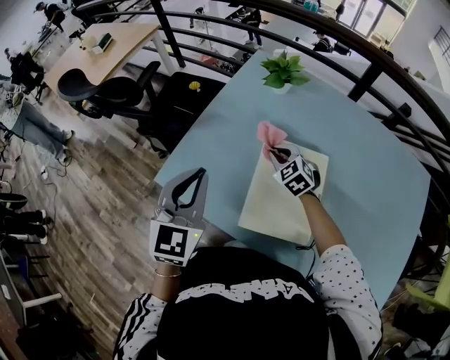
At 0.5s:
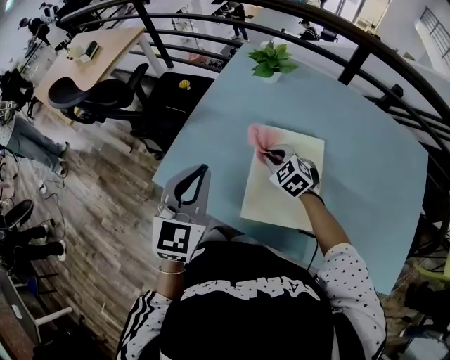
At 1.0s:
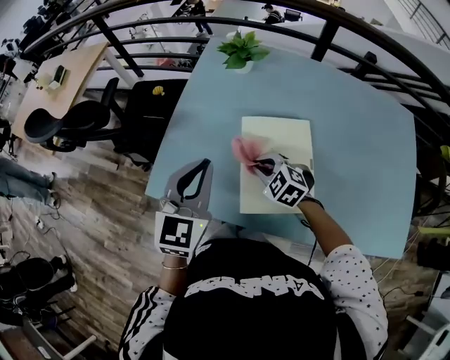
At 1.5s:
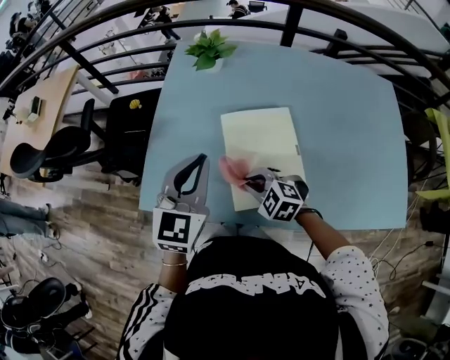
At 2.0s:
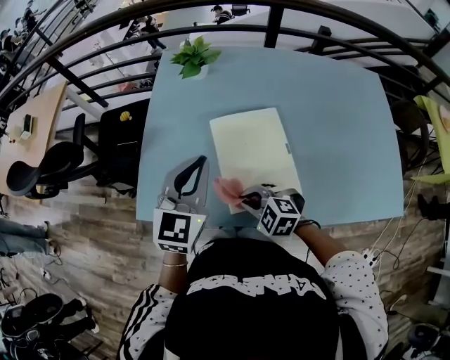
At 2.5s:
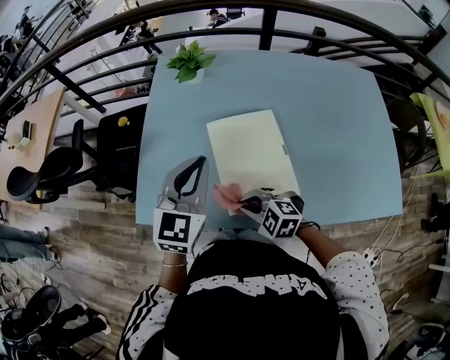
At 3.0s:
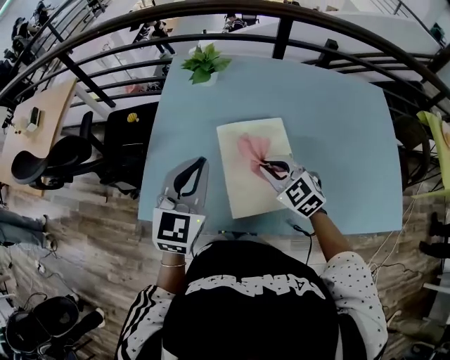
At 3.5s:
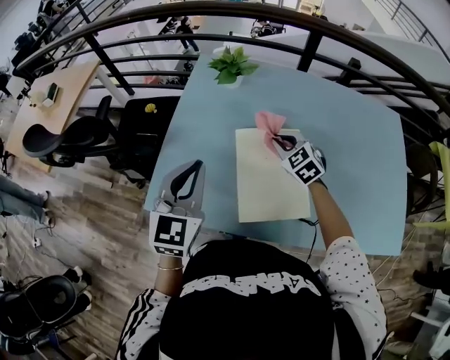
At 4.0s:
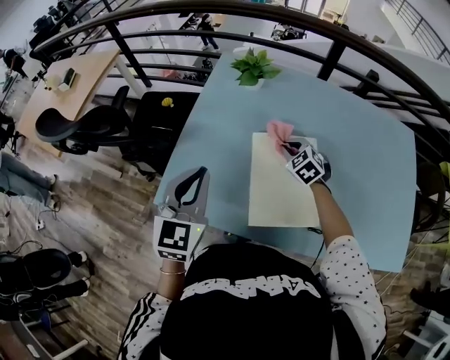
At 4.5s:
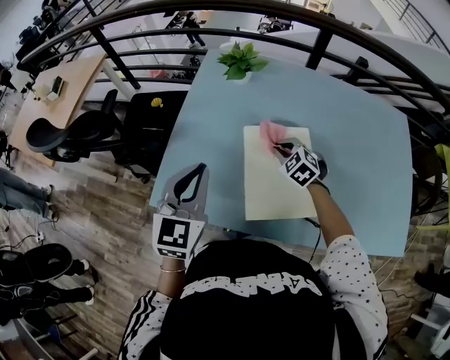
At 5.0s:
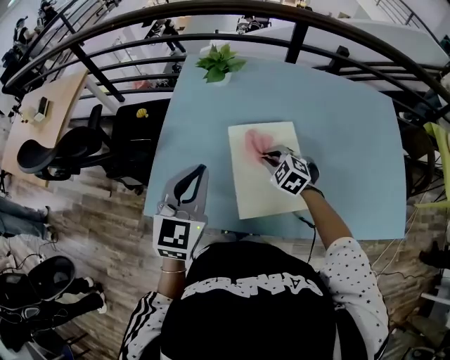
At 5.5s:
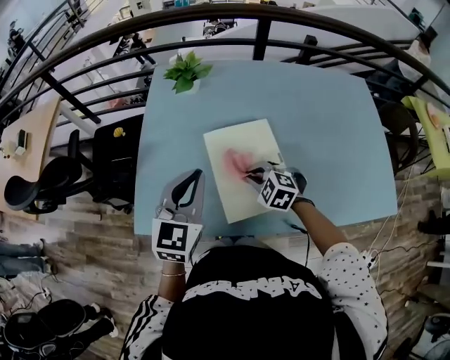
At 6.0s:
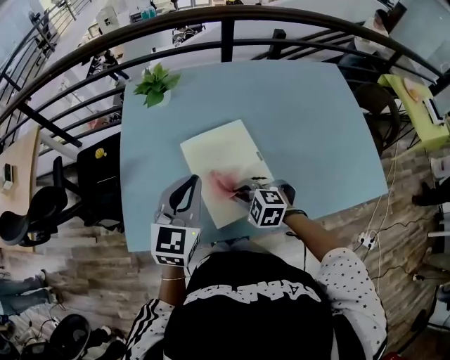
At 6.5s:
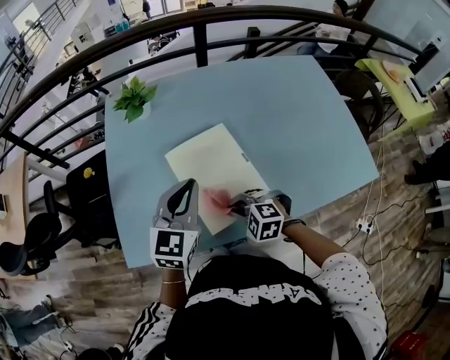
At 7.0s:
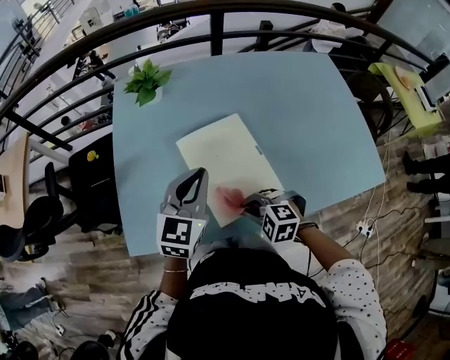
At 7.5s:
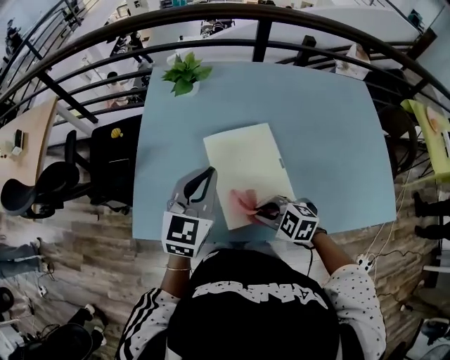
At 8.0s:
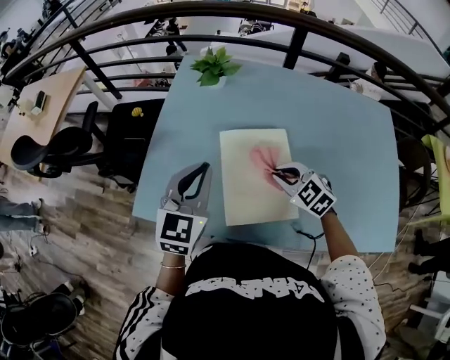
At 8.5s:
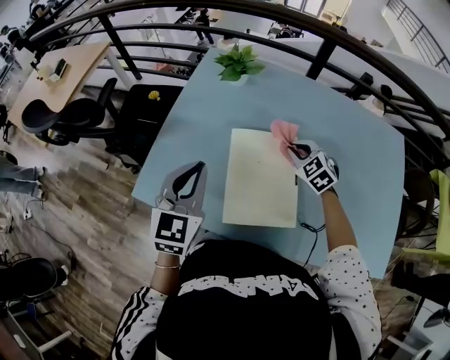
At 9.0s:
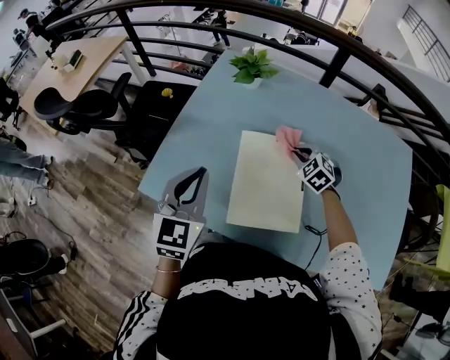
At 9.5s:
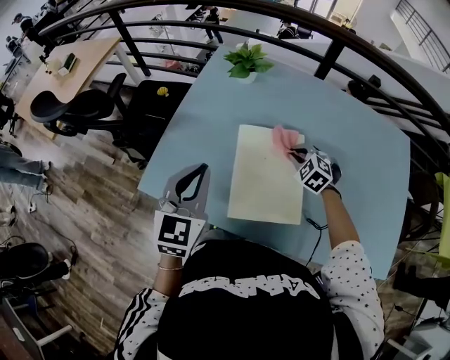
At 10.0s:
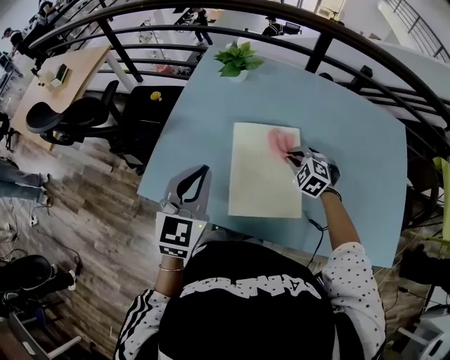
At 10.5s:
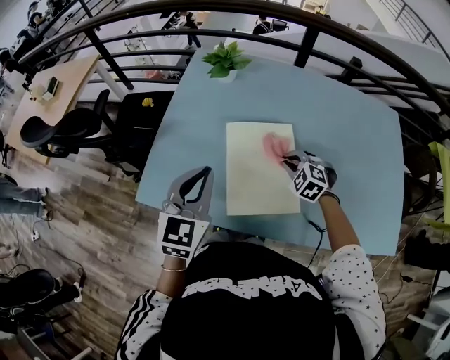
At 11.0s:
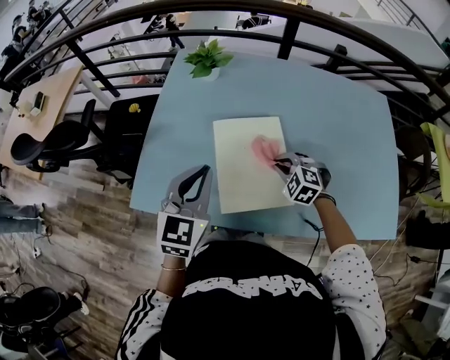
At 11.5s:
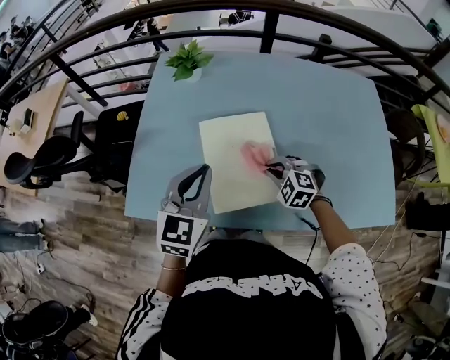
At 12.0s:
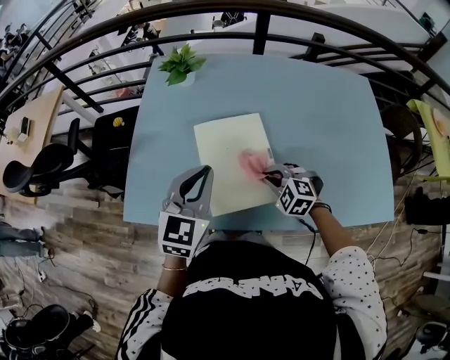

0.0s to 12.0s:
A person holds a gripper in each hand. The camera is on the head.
0.0s to 2.0s: The right gripper heads backward, covering approximately 20 cm, while the left gripper goes roughly 10 cm to the right, and swivels roughly 30 degrees.
2.0s to 4.0s: The right gripper heads forward and to the right, covering about 25 cm, and swivels about 20 degrees, while the left gripper moves to the left, about 10 cm.
4.0s to 6.0s: The left gripper moves to the right, about 15 cm, and turns by about 30 degrees; the right gripper is displaced backward by some 20 cm.
6.0s to 8.0s: The right gripper heads forward, to the right and upward, covering about 10 cm. The left gripper ends up some 5 cm from where it was.
8.0s to 10.0s: The right gripper shifts approximately 10 cm downward and forward, and swivels approximately 20 degrees.
10.0s to 12.0s: The right gripper shifts roughly 10 cm backward. The left gripper travels to the right by approximately 10 cm.

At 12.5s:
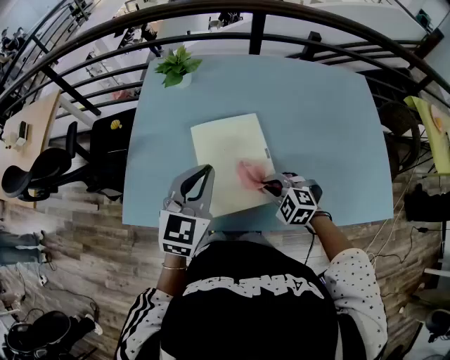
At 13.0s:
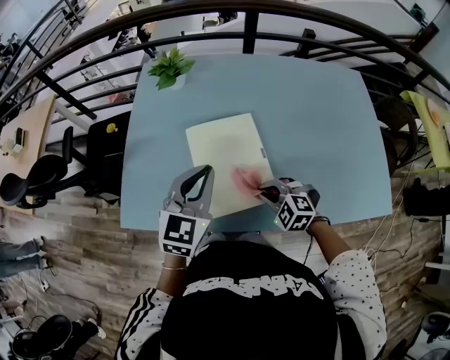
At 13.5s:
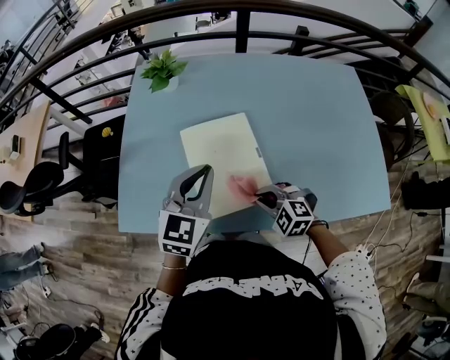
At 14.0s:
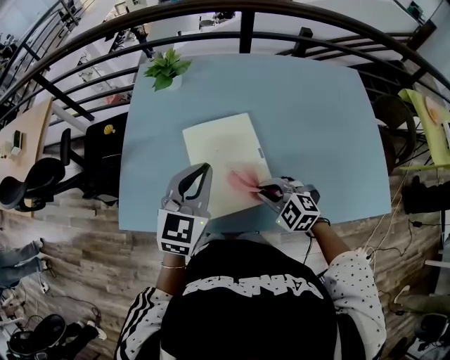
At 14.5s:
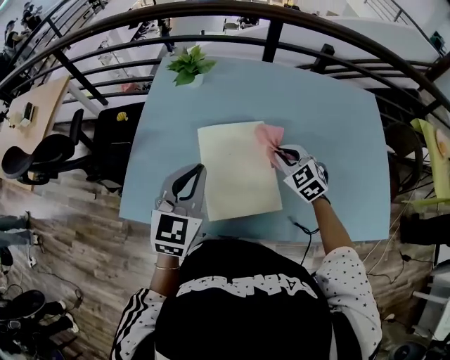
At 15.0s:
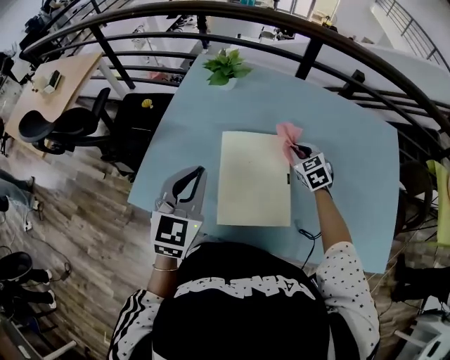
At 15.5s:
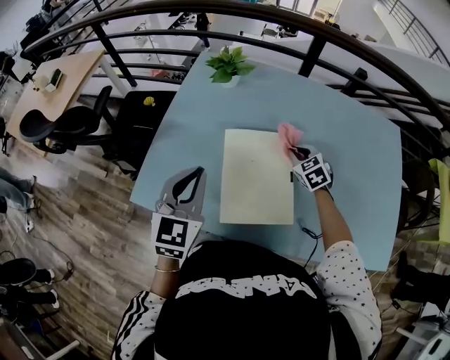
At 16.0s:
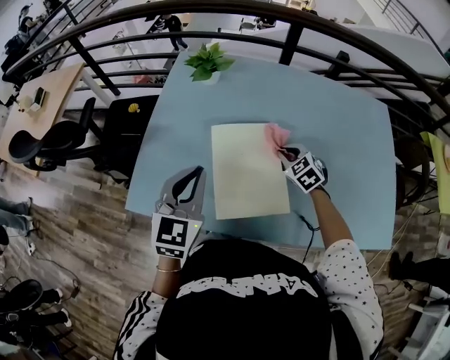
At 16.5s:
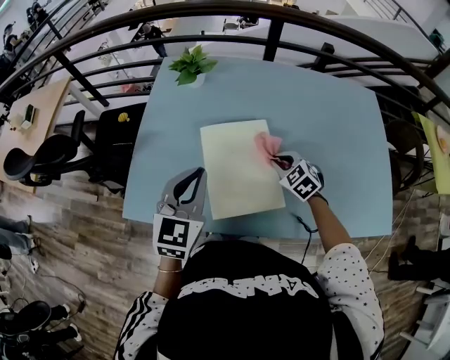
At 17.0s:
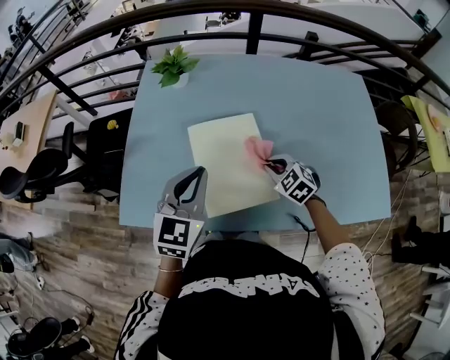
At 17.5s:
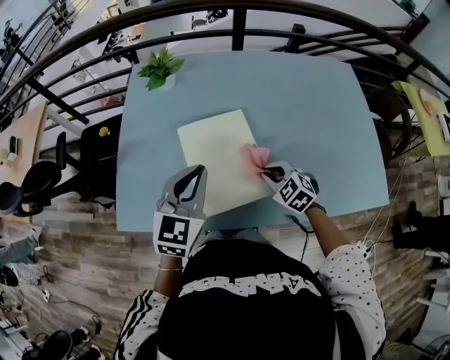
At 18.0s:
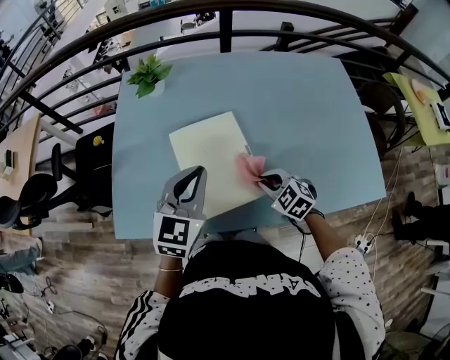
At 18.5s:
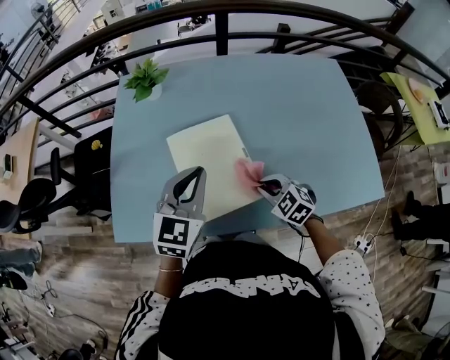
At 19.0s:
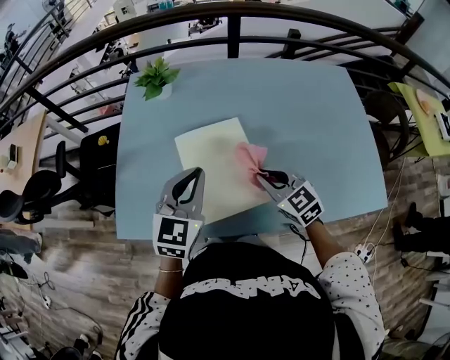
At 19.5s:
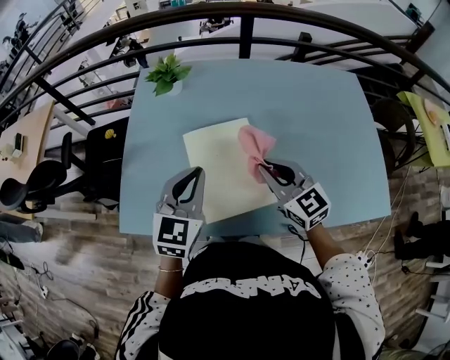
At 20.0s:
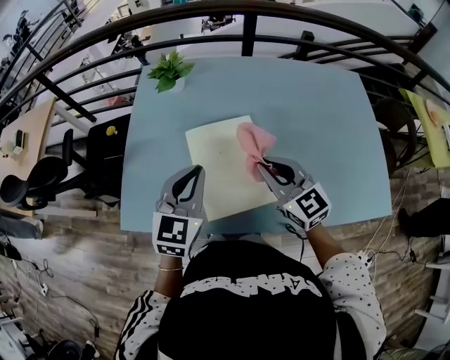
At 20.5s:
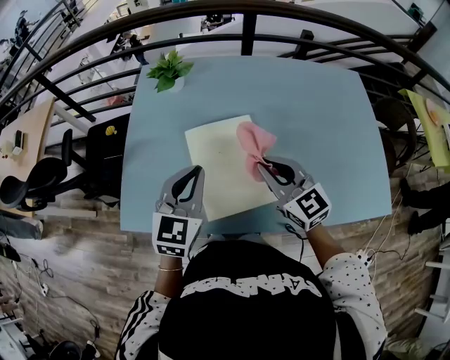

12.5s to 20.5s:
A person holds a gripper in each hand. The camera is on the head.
12.5s to 14.5s: The right gripper shifts some 15 cm forward, to the right and upward, and turns by some 20 degrees.
14.5s to 16.5s: The right gripper heads downward, covering approximately 5 cm, and moves approximately 10 cm forward and comes back.
16.5s to 18.5s: The right gripper moves backward, approximately 10 cm. The left gripper is displaced to the right by approximately 10 cm.
18.5s to 20.5s: The right gripper goes about 15 cm upward, and angles its fingers upward, by approximately 40 degrees.

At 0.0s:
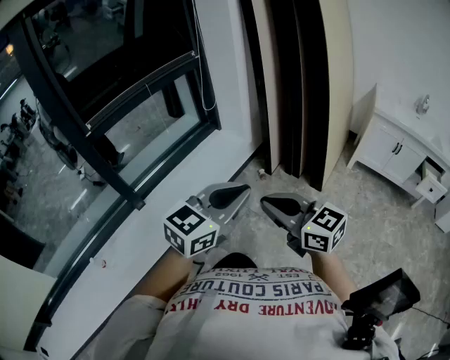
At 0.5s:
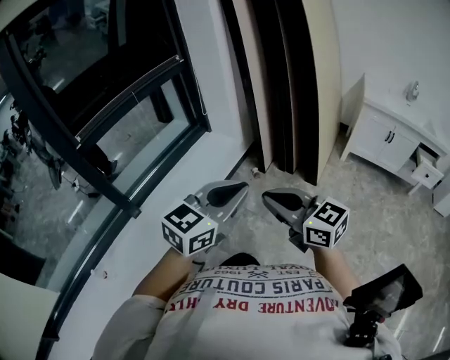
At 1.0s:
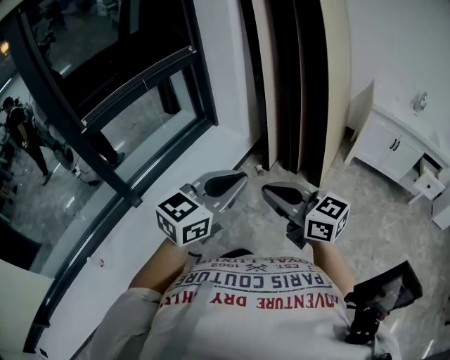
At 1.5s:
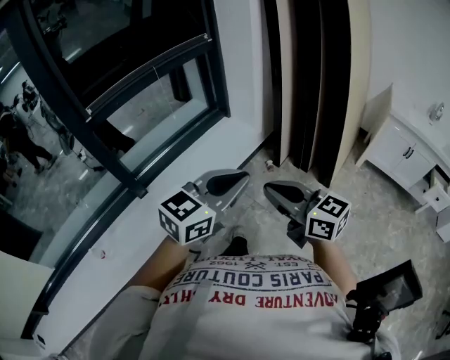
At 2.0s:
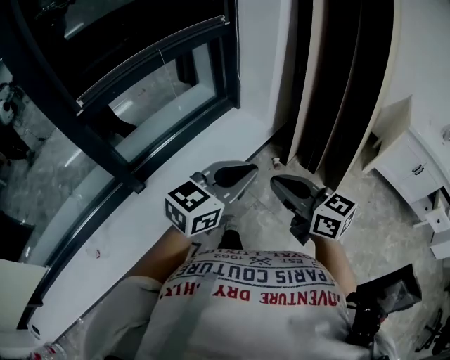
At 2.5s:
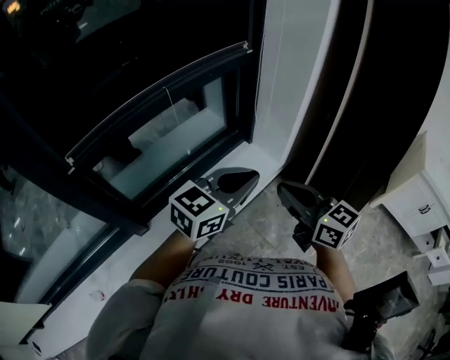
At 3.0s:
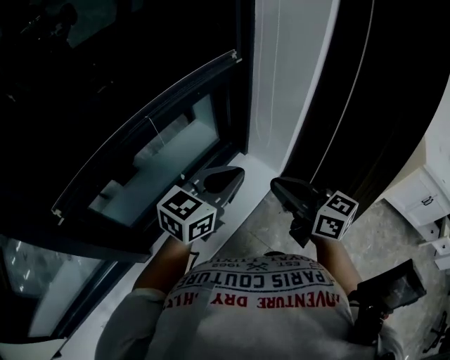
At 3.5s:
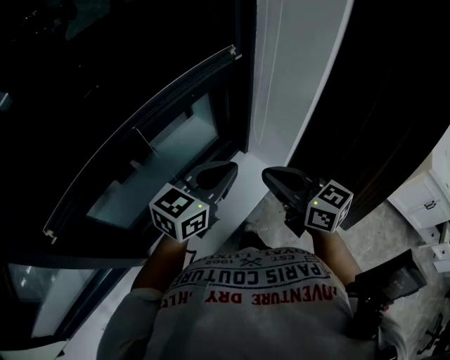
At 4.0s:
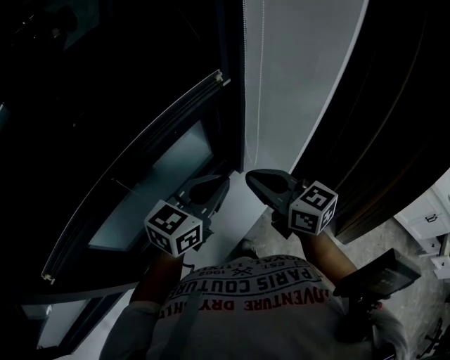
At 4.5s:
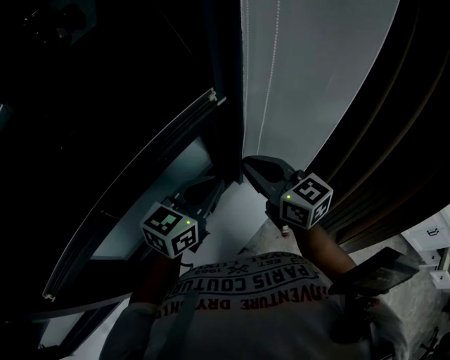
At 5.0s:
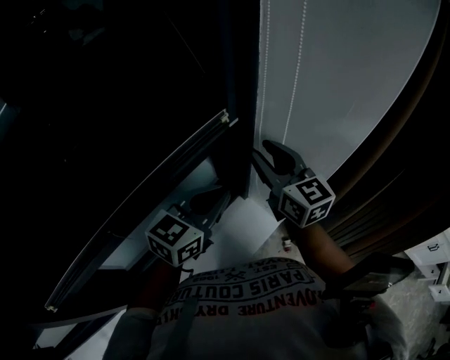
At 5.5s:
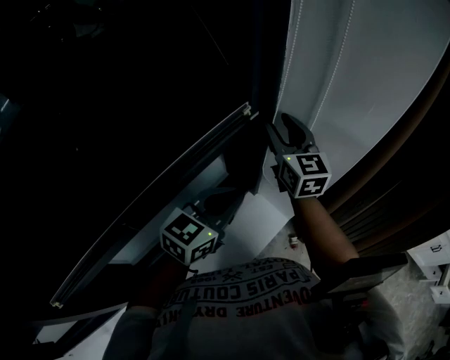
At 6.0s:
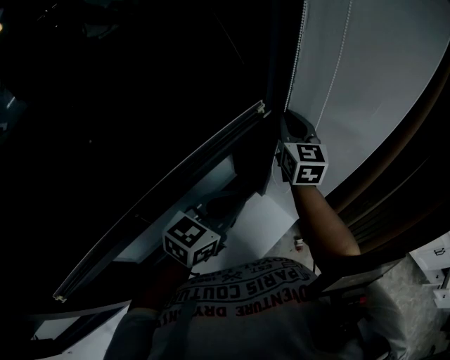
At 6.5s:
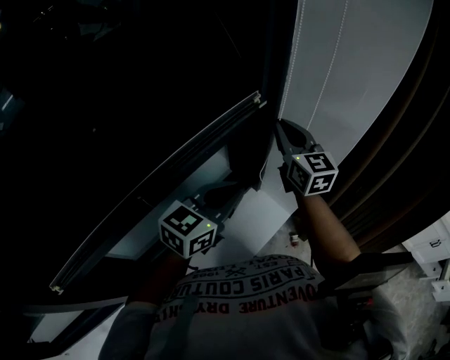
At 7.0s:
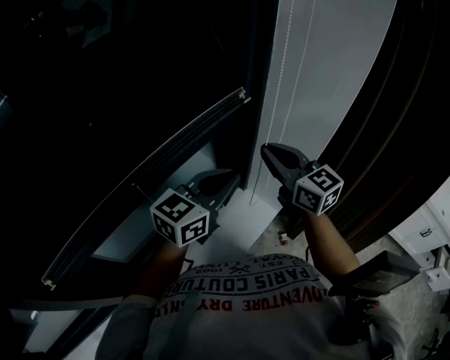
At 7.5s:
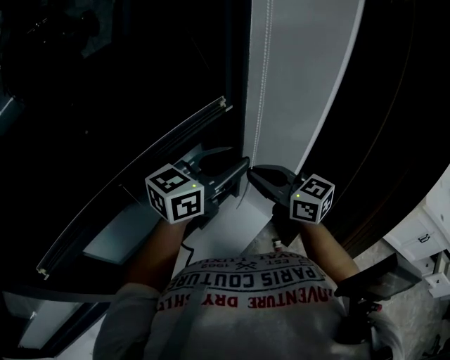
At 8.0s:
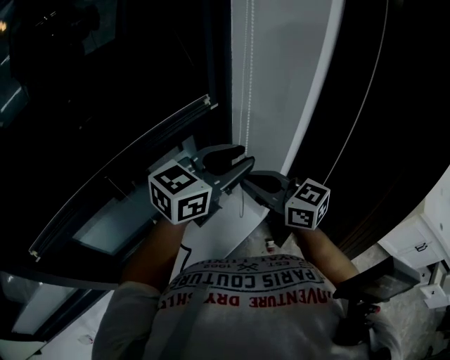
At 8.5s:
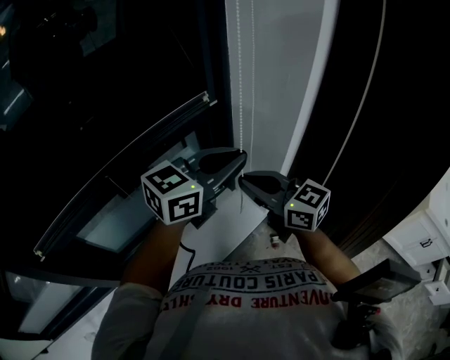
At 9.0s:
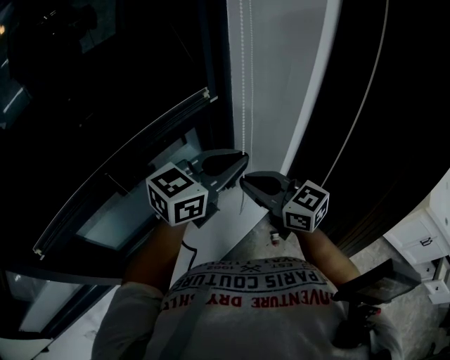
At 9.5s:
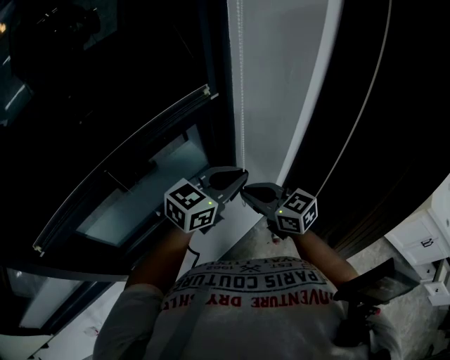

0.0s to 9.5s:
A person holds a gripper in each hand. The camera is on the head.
0.0s to 2.0s: The two grippers go approximately 20 cm forward and to the left.
2.0s to 4.0s: The pair of grippers is taken forward, some 50 cm.
4.0s to 5.5s: The right gripper shifts approximately 25 cm forward, swivels some 30 degrees, and opens; the left gripper heads forward, covering approximately 10 cm.
5.5s to 7.5s: The left gripper moves upward and to the right, about 15 cm, and opens up. Meanwhile the right gripper moves backward, approximately 20 cm, rotates approximately 40 degrees, and closes up.
7.5s to 9.5s: The grippers both shift downward by about 10 cm. The left gripper closes up.
